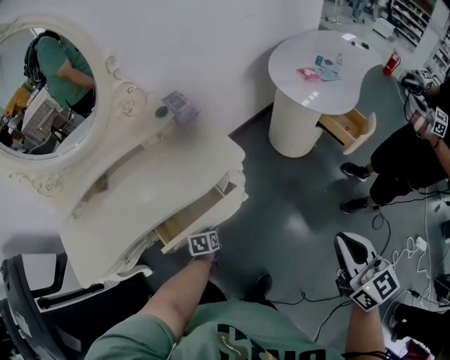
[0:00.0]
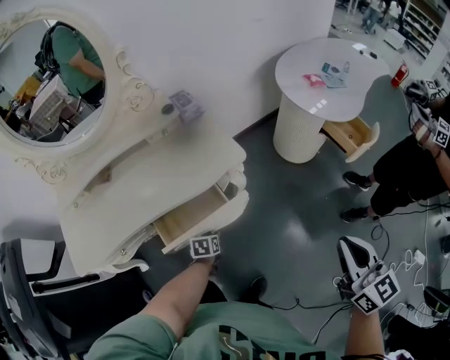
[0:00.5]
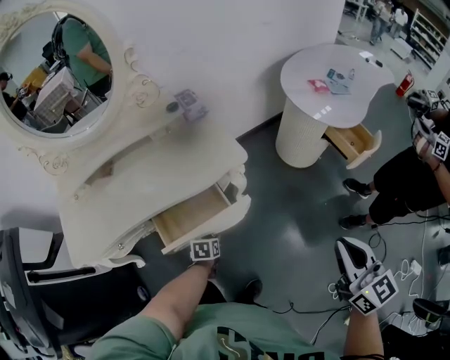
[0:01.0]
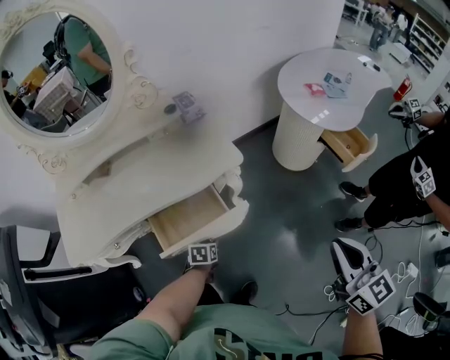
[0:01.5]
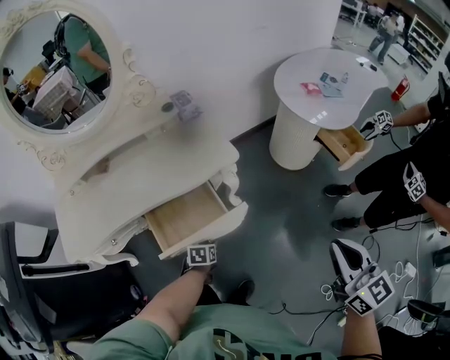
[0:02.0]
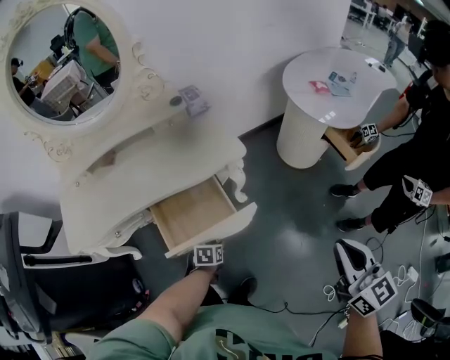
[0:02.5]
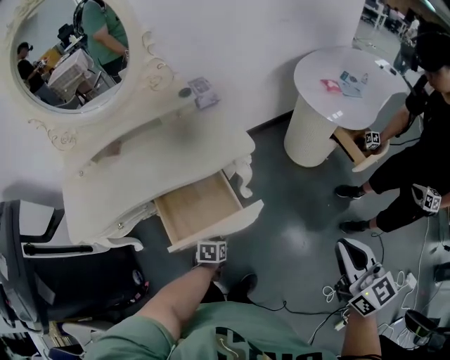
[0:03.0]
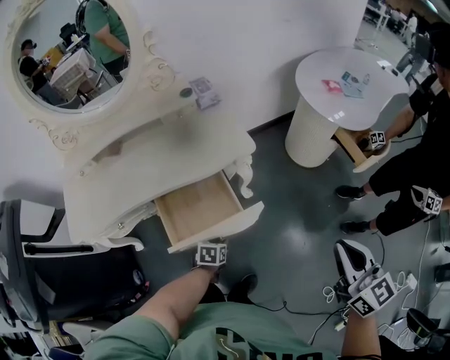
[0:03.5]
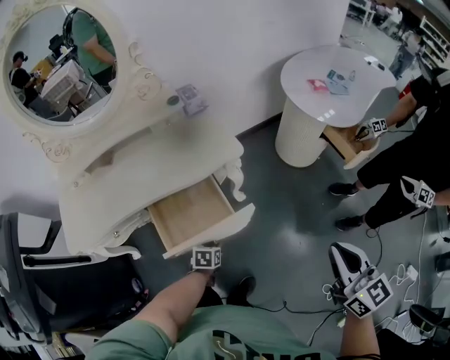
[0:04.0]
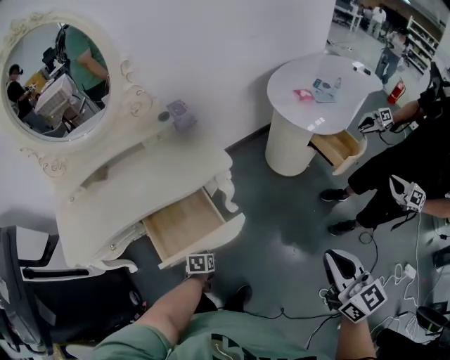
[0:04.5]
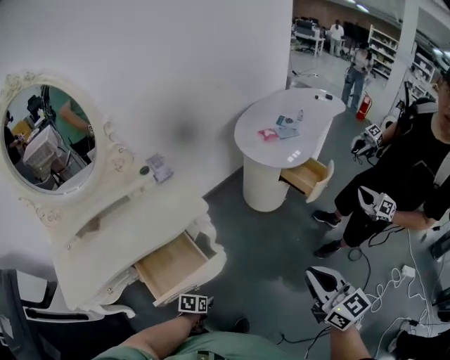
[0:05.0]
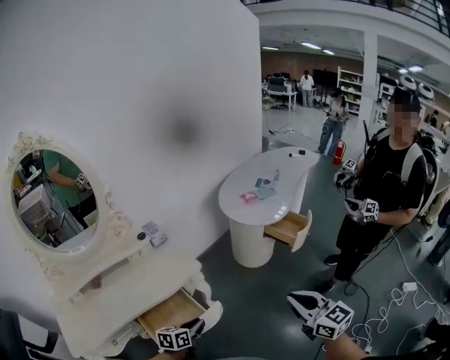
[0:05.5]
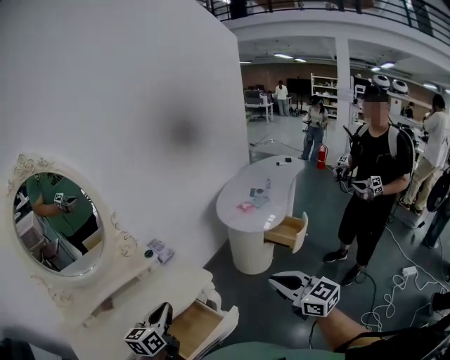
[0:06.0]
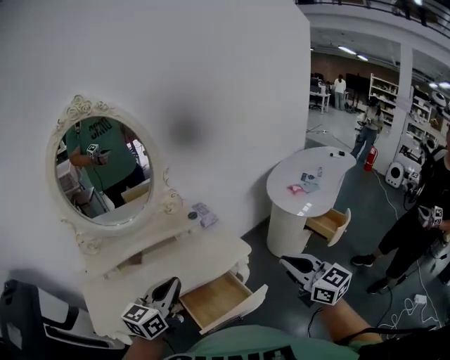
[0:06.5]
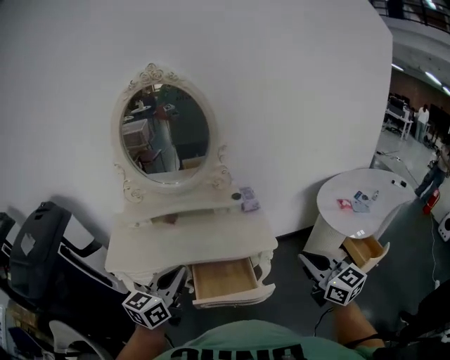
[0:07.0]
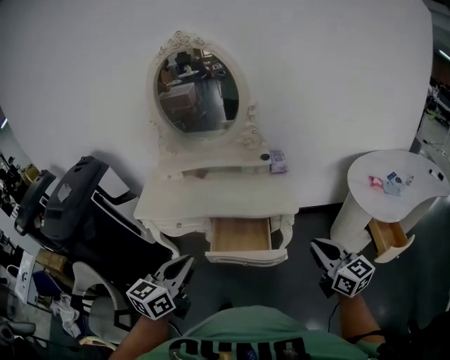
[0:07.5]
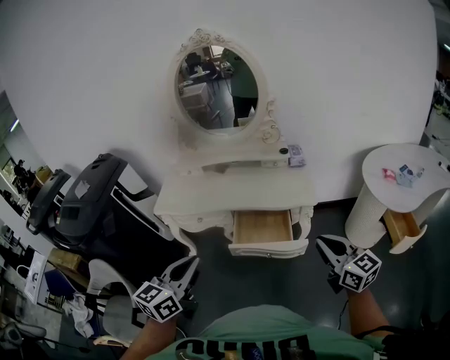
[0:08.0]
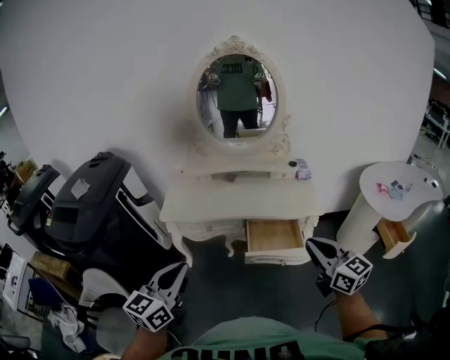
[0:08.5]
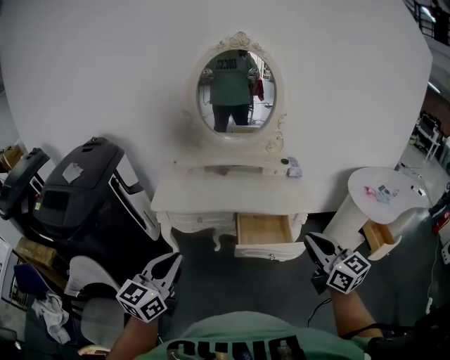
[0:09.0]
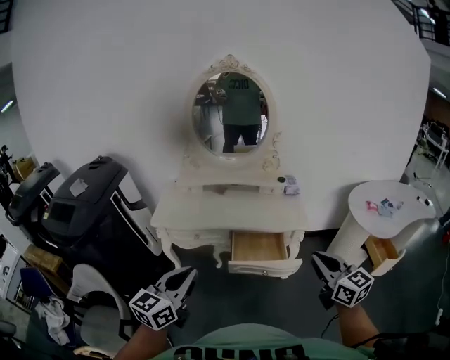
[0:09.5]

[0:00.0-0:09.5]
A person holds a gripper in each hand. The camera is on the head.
0:00.0 to 0:02.0: The left gripper shifts roughly 10 cm backward and to the right, while the right gripper ends up some 5 cm from where it was.
0:02.0 to 0:04.0: The grippers stay close to where they were, moving slightly.
0:04.0 to 0:05.5: The left gripper is displaced upward by approximately 25 cm, and swivels about 30 degrees, while the right gripper moves upward, approximately 10 cm.
0:05.5 to 0:07.5: The right gripper changes its angle by approximately 40 degrees; the left gripper moves upward, roughly 25 cm, and turns by some 50 degrees.
0:07.5 to 0:09.5: Both grippers travel together to the left and backward, some 20 cm.

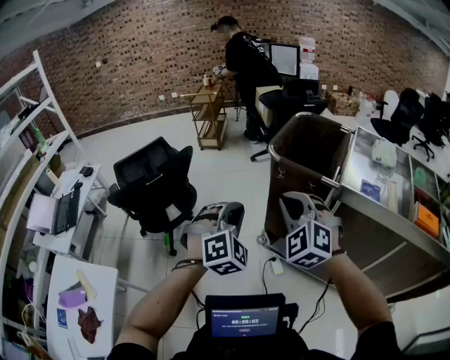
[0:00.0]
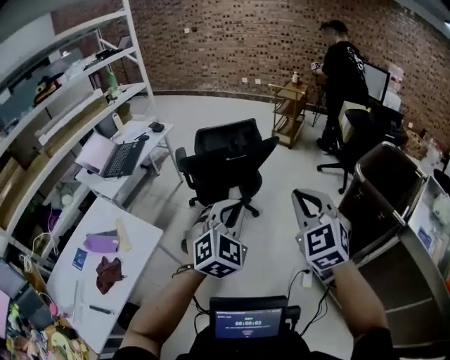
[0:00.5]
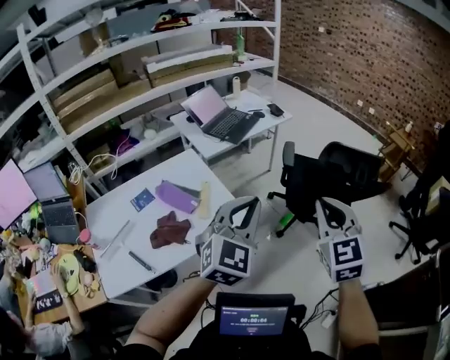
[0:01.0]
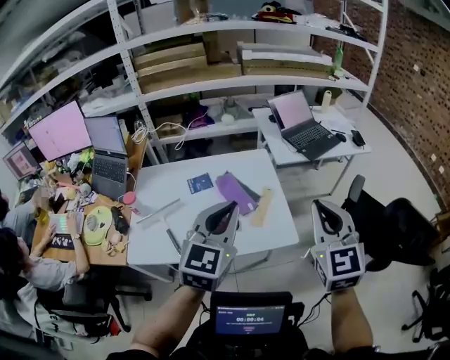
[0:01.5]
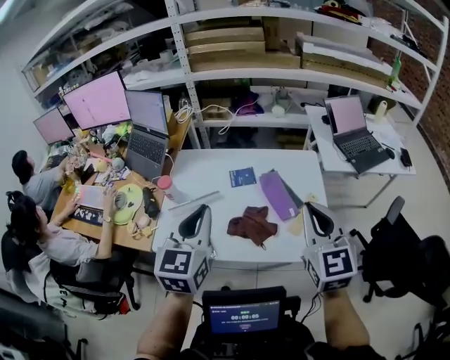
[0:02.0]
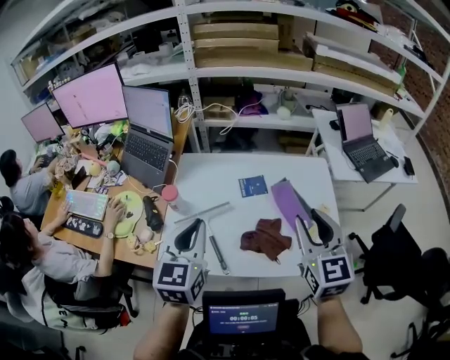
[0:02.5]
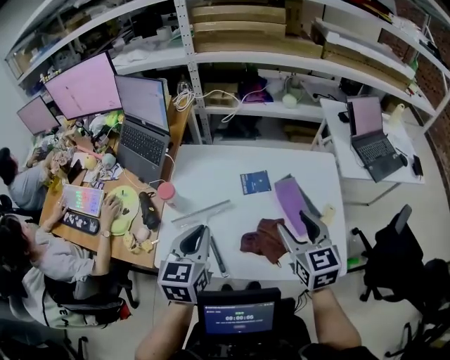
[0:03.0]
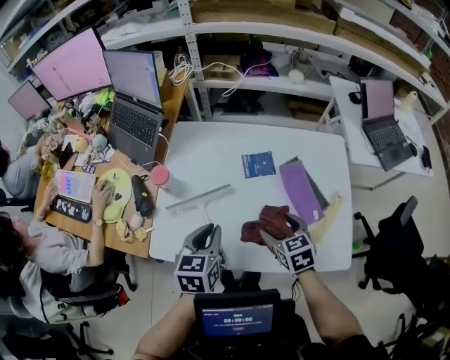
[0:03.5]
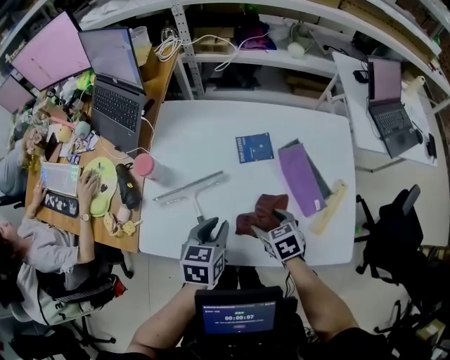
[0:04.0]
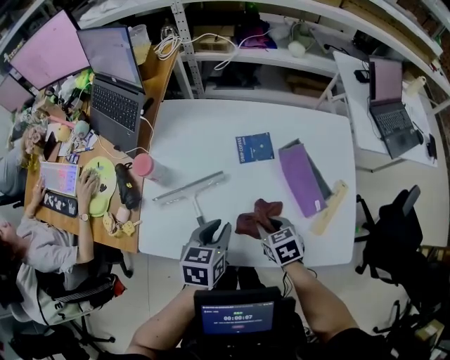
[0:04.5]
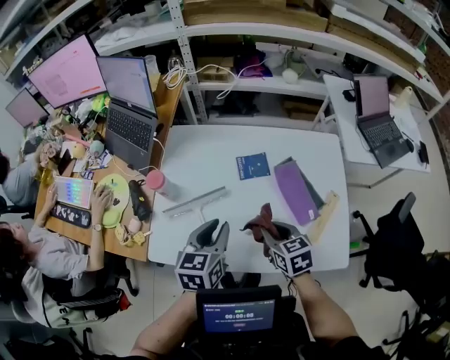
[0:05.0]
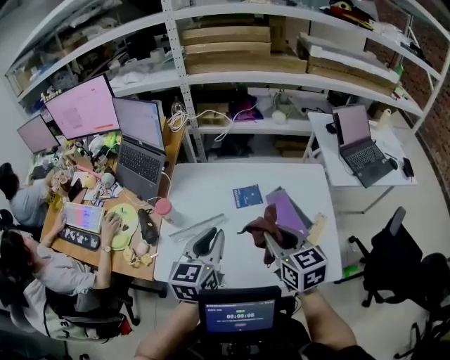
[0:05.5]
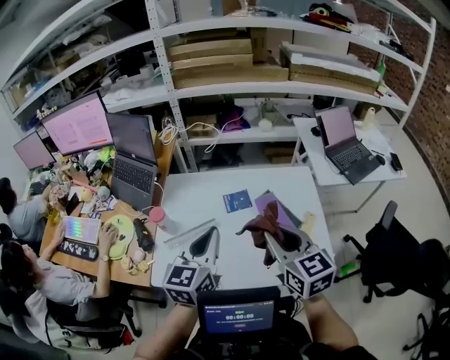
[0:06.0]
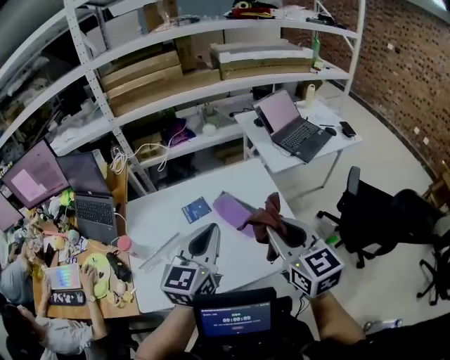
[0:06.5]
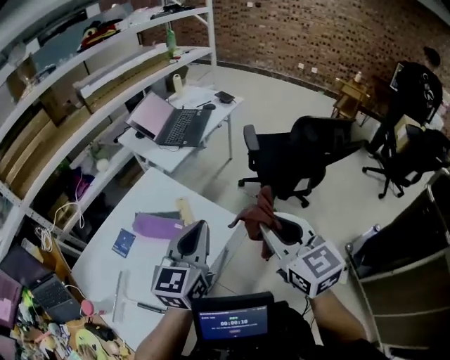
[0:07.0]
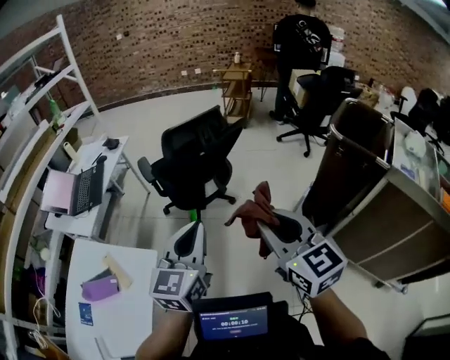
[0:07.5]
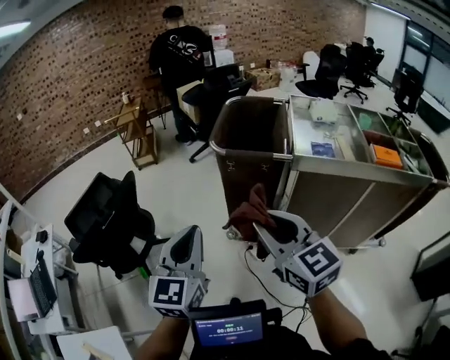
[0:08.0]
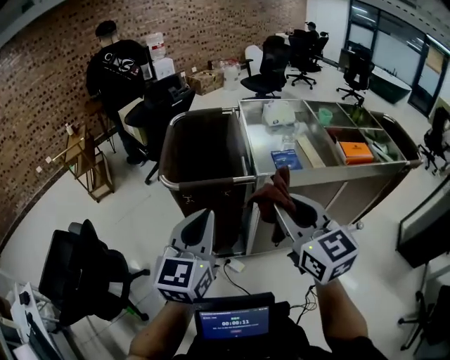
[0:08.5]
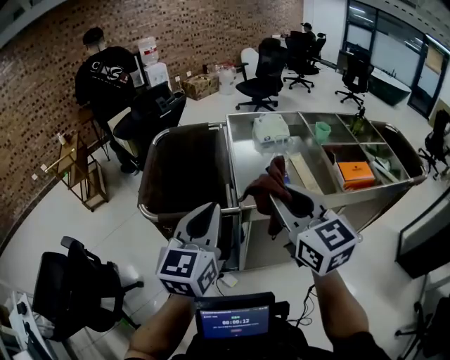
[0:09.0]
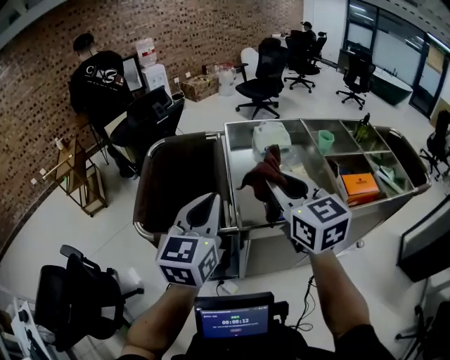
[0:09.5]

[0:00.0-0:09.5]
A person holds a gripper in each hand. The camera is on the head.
0:00.0 to 0:02.0: The two grippers travel together, roughly 1 m. The right gripper rotates approximately 90 degrees, while the left gripper swivels approximately 120 degrees.
0:02.0 to 0:04.0: Both grippers move downward and forward, some 50 cm. The right gripper tips its fingers downward by some 50 degrees, and opens up. Meanwhile the left gripper tips its fingers downward by some 30 degrees.
0:04.0 to 0:05.5: Both grippers travel together upward, roughly 30 cm. The right gripper tilts its fingers some 30 degrees upward, and closes; the left gripper swivels some 30 degrees.
0:05.5 to 0:07.5: Both grippers are carried approximately 90 cm. The left gripper swivels approximately 90 degrees. Meanwhile the right gripper changes its angle by about 90 degrees.
0:07.5 to 0:09.5: Both grippers are carried about 1 m. The right gripper changes its angle by some 50 degrees, while the left gripper rotates roughly 50 degrees.

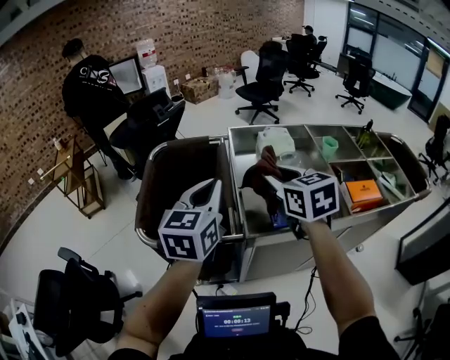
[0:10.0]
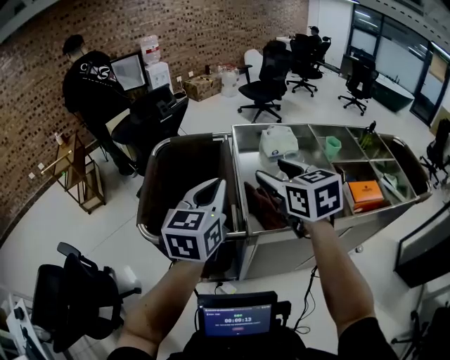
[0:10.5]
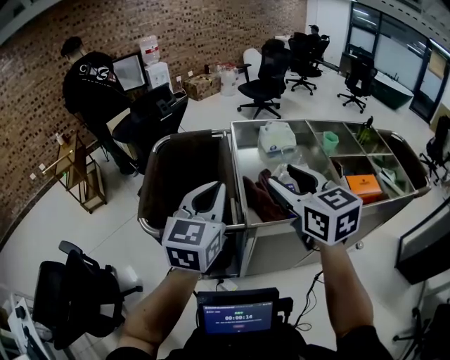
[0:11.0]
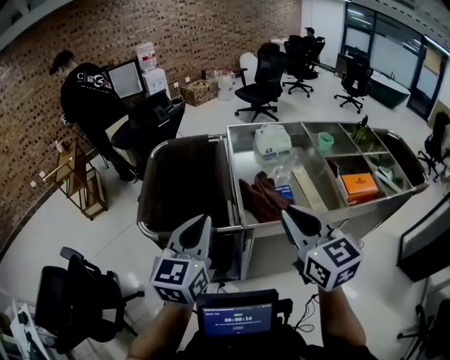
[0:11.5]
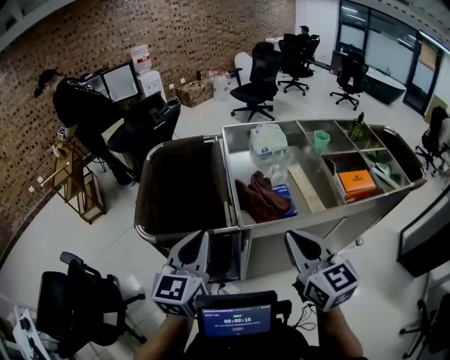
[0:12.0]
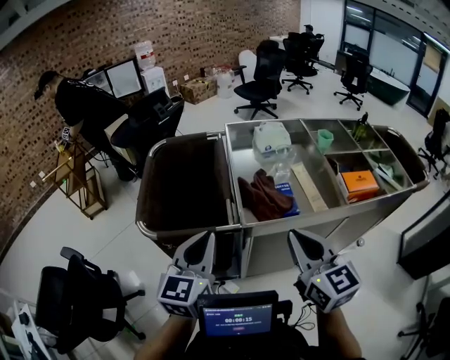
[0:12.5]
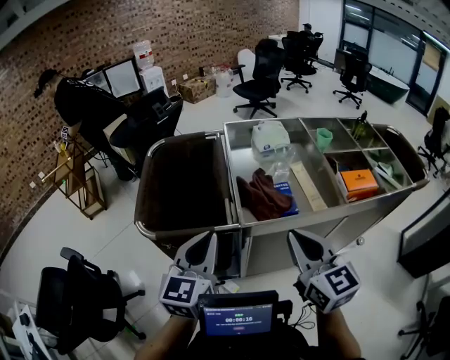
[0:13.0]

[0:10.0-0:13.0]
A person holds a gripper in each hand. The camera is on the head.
0:10.0 to 0:11.5: The grippers both shift backward by about 15 cm. The right gripper opens, then closes again.
0:11.5 to 0:13.0: The right gripper moves about 5 cm.

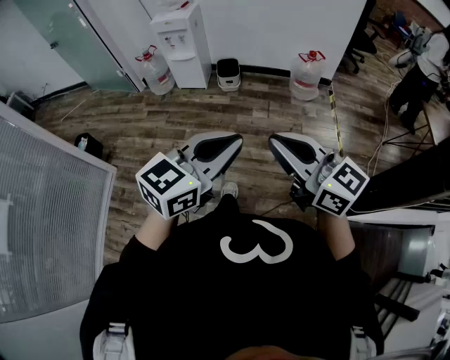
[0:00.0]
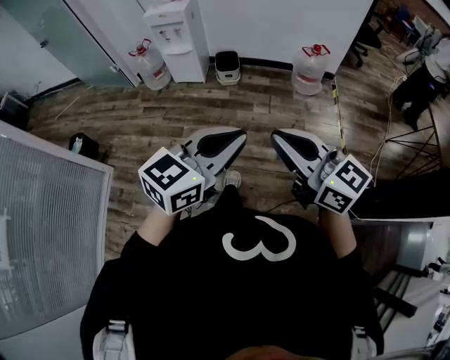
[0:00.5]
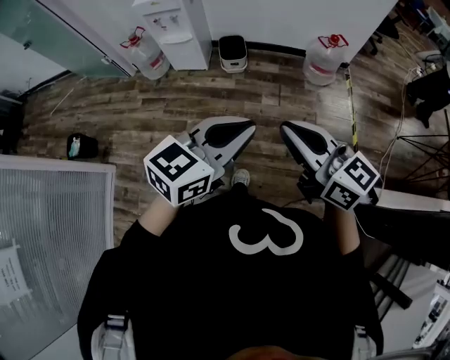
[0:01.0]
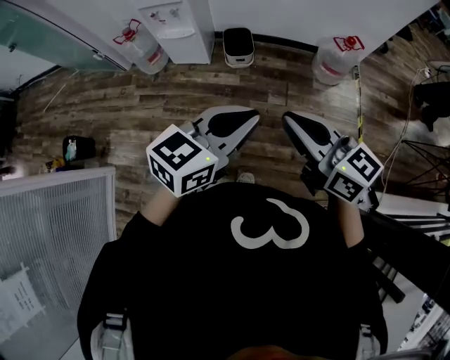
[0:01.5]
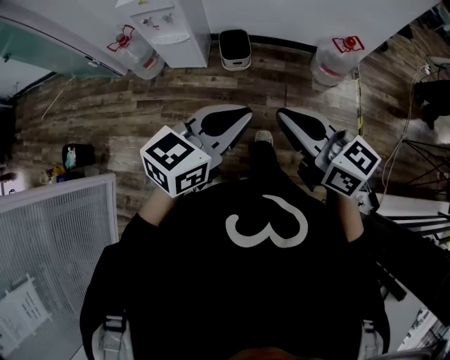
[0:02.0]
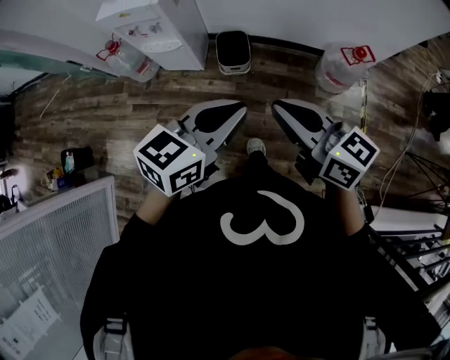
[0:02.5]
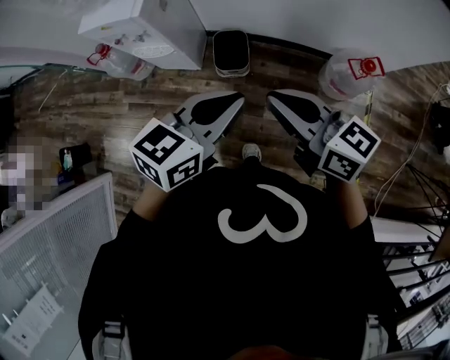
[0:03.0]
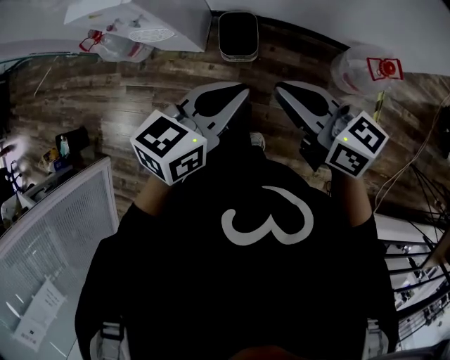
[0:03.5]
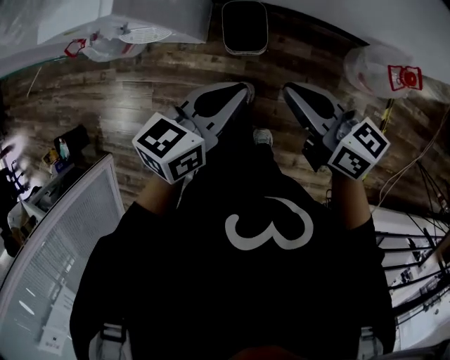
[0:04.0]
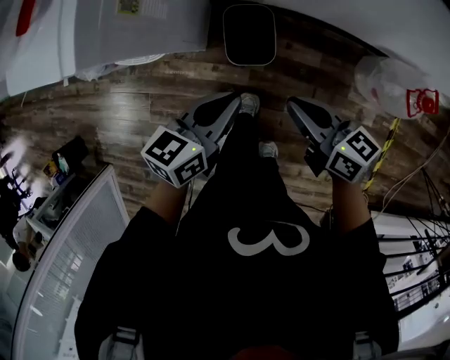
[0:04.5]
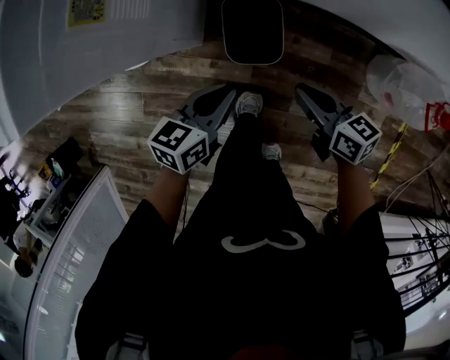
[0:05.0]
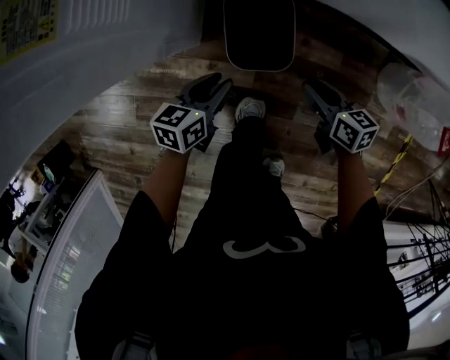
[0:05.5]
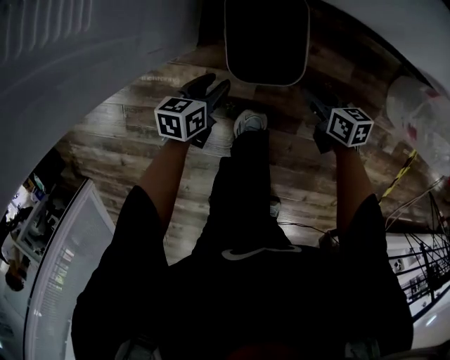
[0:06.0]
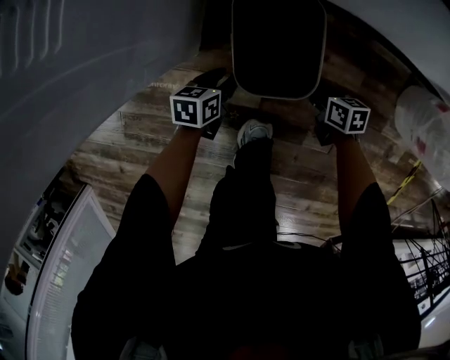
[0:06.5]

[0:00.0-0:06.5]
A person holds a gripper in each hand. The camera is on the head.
0:00.0 to 0:02.0: Both grippers are carried forward, approximately 50 cm.
0:02.0 to 0:04.5: The pair of grippers is taken forward, some 50 cm. Both grippers move downward, approximately 35 cm. The left gripper swivels approximately 30 degrees; the right gripper turns by approximately 30 degrees.
0:04.5 to 0:06.5: The grippers both shift downward by some 50 cm. The right gripper rotates roughly 30 degrees, and opens, while the left gripper turns by about 30 degrees, and opens up.
